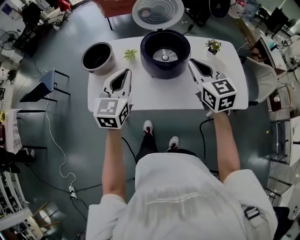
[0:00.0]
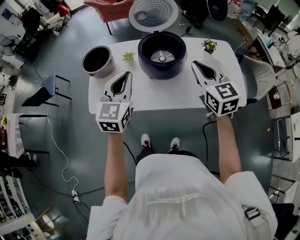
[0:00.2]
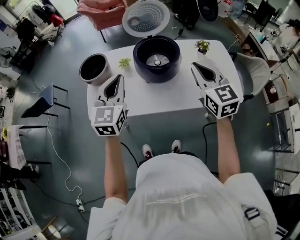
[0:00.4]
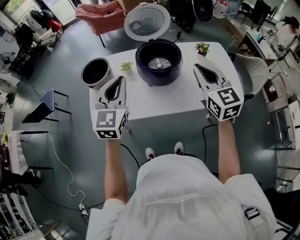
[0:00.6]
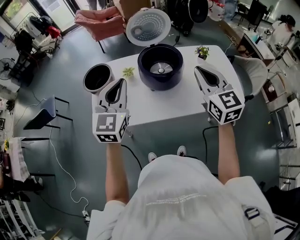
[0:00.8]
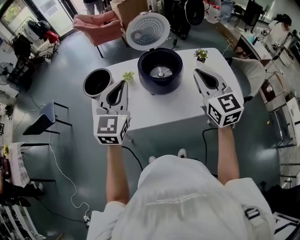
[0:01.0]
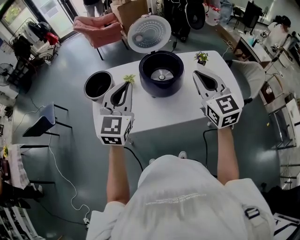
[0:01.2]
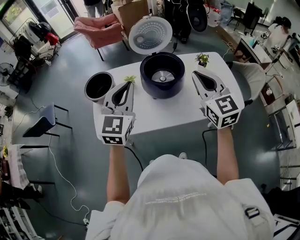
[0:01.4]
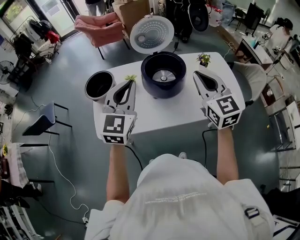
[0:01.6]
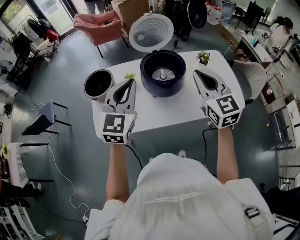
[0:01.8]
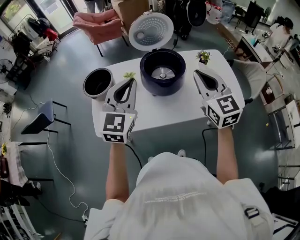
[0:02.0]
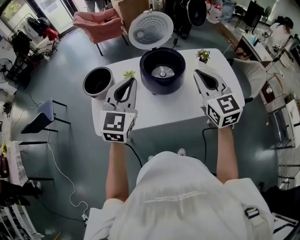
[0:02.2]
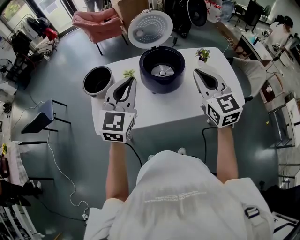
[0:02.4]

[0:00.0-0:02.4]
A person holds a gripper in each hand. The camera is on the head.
0:00.0 to 0:01.2: The right gripper goes about 10 cm upward and backward, while the left gripper goes roughly 10 cm upward.
0:01.2 to 0:02.4: There are only small adjustments of the grippers.

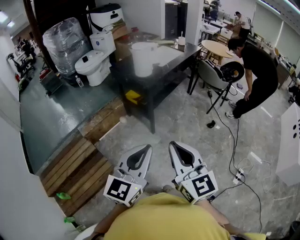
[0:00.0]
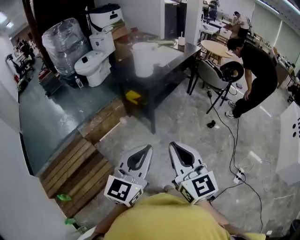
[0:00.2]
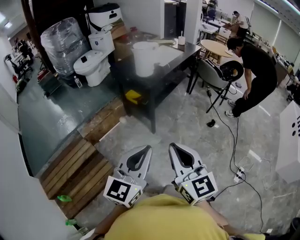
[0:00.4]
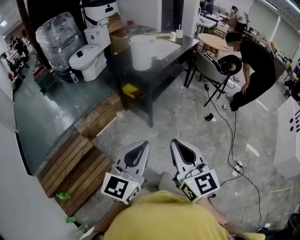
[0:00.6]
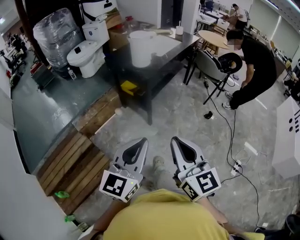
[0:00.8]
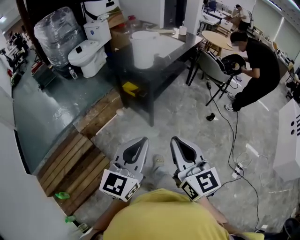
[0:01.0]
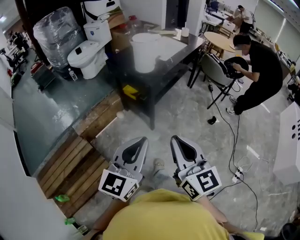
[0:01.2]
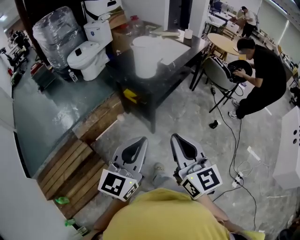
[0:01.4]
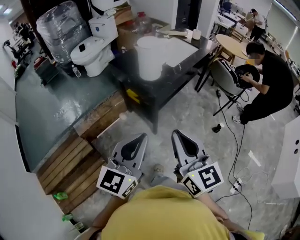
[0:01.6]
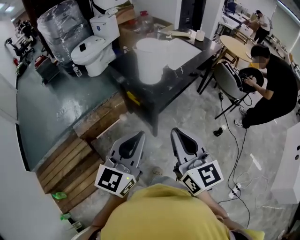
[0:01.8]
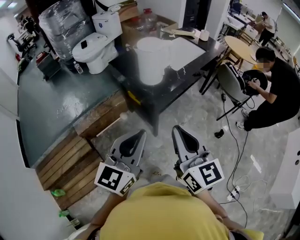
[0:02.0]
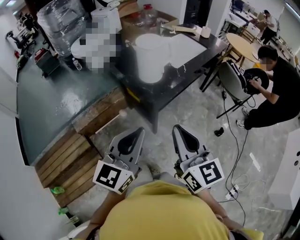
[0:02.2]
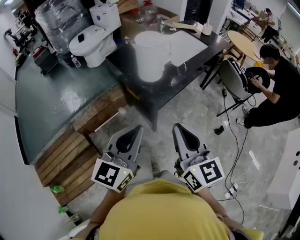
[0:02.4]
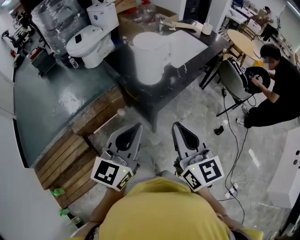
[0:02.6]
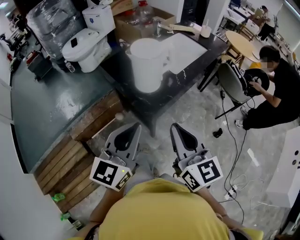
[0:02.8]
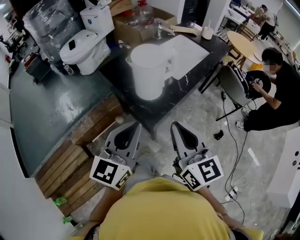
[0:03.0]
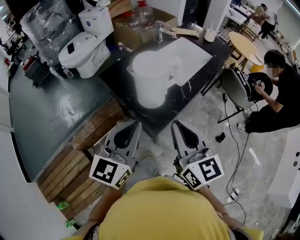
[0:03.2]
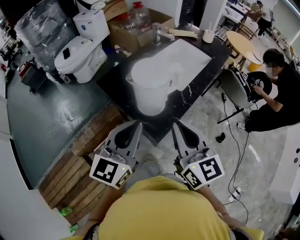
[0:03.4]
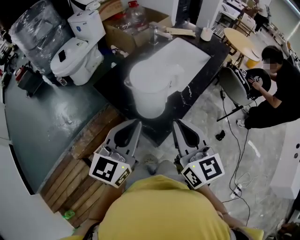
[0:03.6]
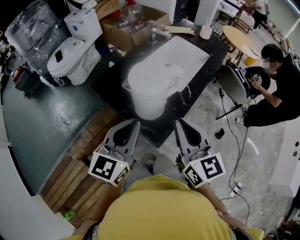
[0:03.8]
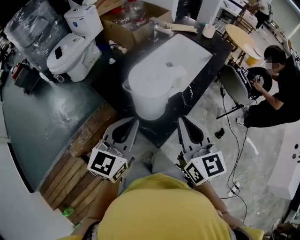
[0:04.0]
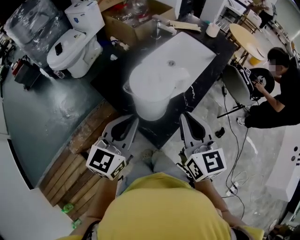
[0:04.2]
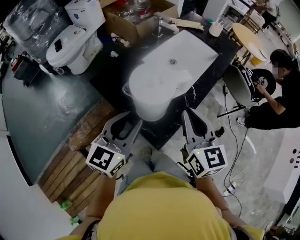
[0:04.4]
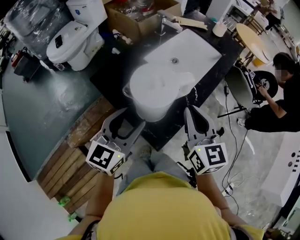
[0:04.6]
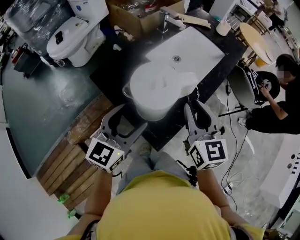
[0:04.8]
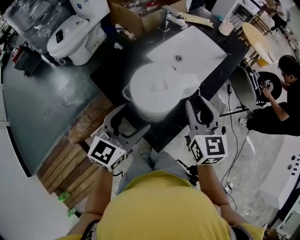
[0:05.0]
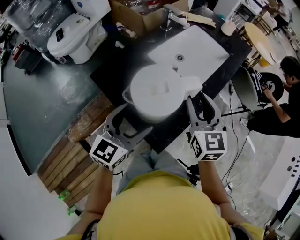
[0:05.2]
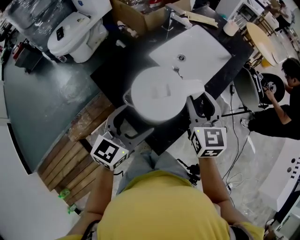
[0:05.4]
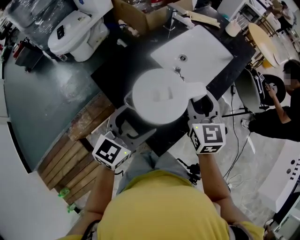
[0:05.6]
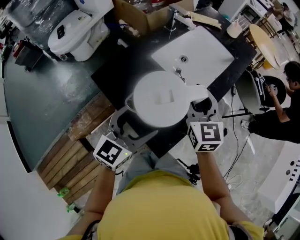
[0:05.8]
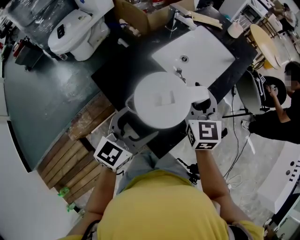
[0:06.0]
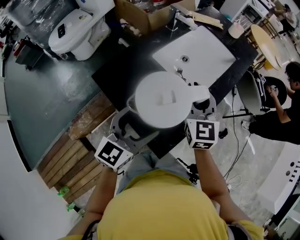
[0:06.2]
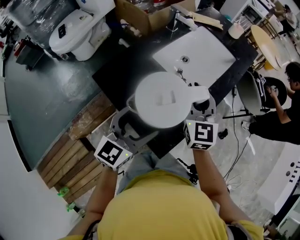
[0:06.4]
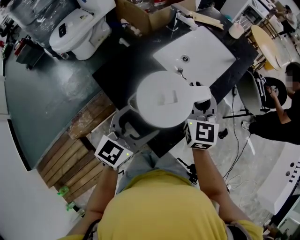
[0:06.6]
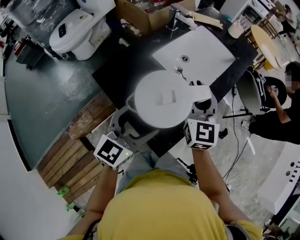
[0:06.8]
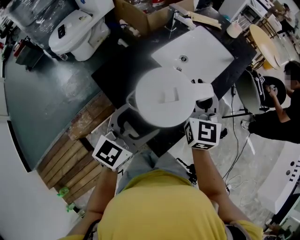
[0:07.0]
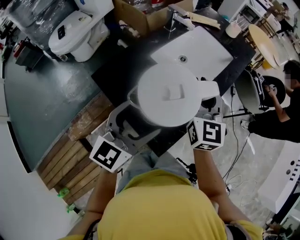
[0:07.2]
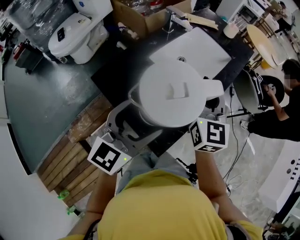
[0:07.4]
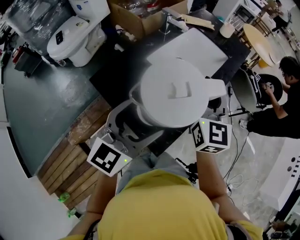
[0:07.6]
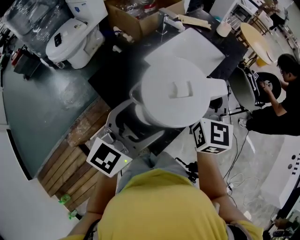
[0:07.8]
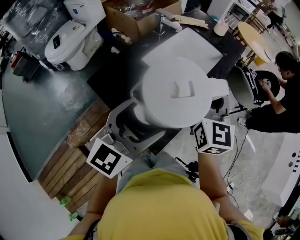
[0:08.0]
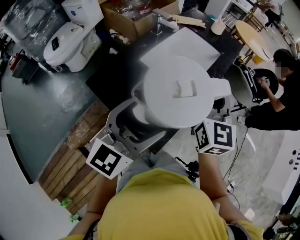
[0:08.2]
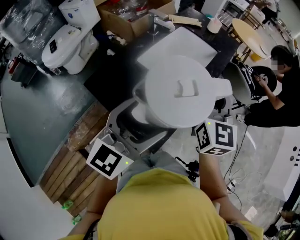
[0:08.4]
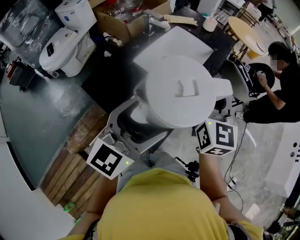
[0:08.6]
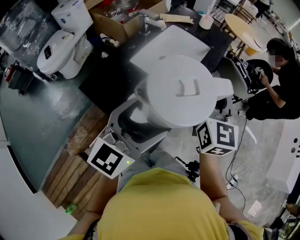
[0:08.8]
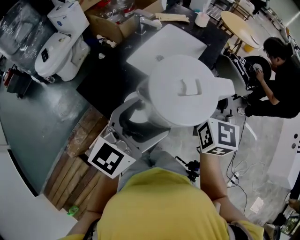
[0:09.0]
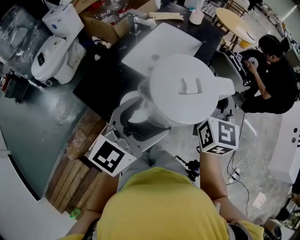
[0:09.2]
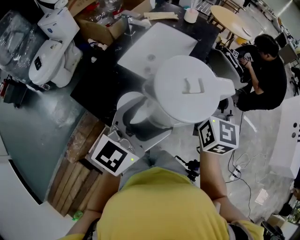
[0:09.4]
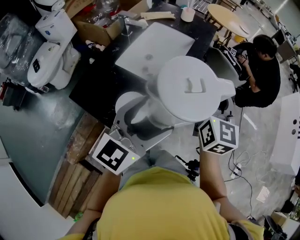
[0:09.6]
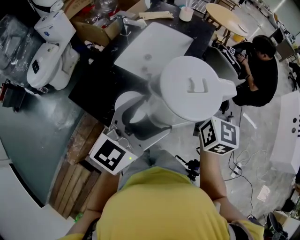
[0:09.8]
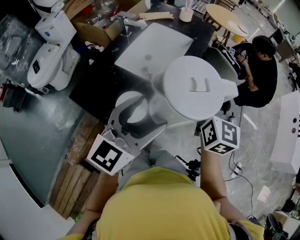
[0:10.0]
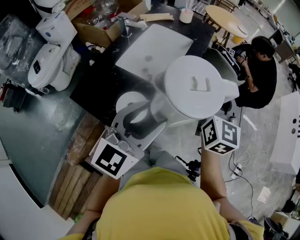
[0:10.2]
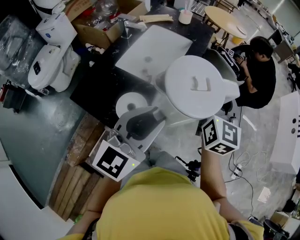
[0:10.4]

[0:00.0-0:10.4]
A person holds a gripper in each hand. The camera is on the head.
0:00.0 to 0:01.4: The grippers both shift forward by some 15 cm.
0:01.4 to 0:03.0: Both grippers travel together forward, approximately 30 cm.
0:03.0 to 0:04.4: Both grippers travel together forward, roughly 20 cm.
0:04.4 to 0:06.0: The left gripper moves forward, approximately 5 cm, and opens up; the right gripper goes roughly 15 cm forward, and opens its fingers.
0:06.0 to 0:07.4: The grippers both shift upward by approximately 5 cm.
0:07.4 to 0:09.0: Both grippers travel together to the right, roughly 10 cm.
0:09.0 to 0:10.4: The left gripper closes up. Meanwhile the right gripper is displaced to the right by some 10 cm.

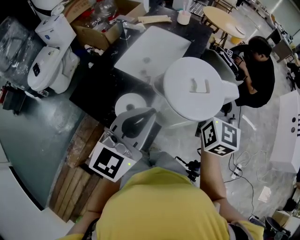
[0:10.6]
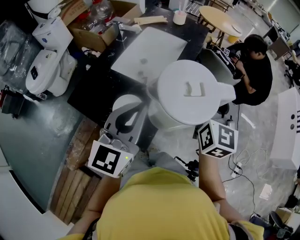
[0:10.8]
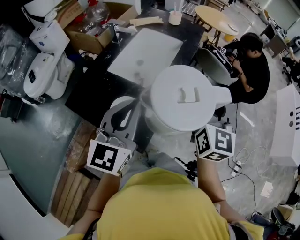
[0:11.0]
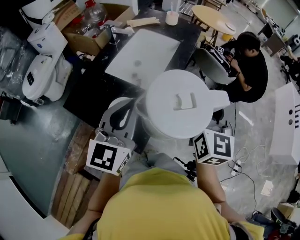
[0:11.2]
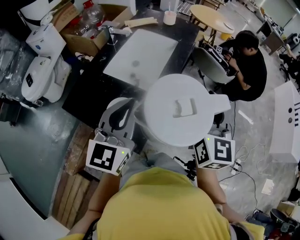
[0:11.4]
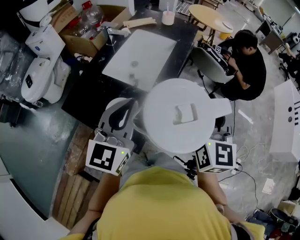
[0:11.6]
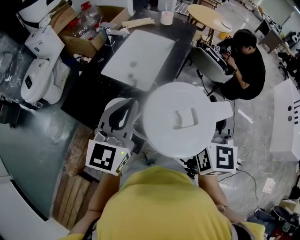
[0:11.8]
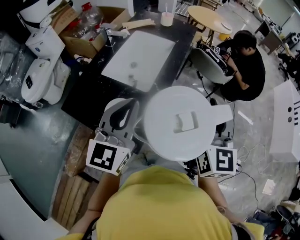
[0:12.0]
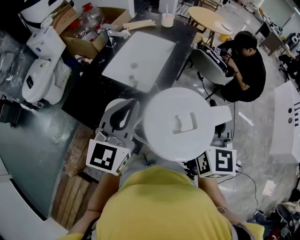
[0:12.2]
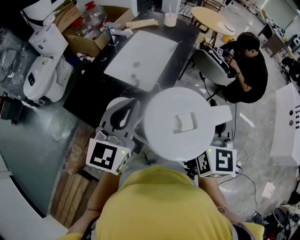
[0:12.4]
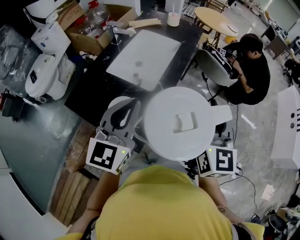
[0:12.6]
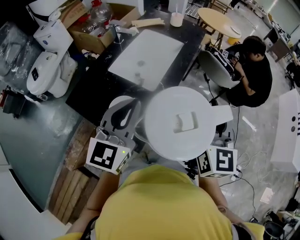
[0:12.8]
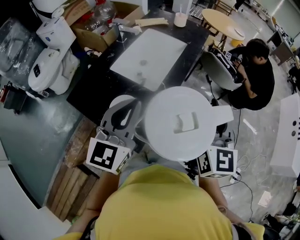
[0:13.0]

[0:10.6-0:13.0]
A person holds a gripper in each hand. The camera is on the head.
0:10.6 to 0:11.8: The right gripper heads backward, covering approximately 5 cm.
0:11.8 to 0:13.0: There are only small adjustments of the grippers.

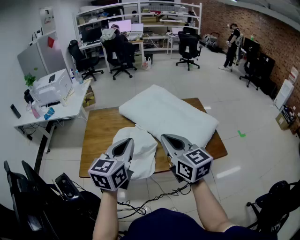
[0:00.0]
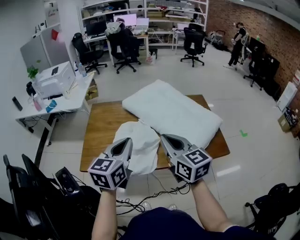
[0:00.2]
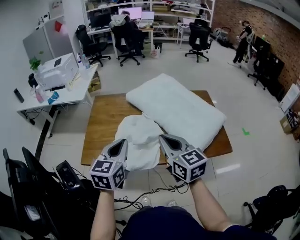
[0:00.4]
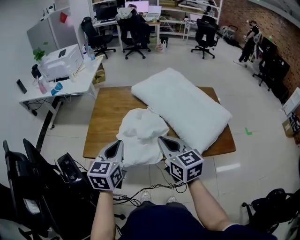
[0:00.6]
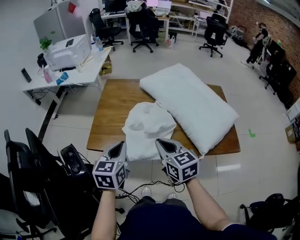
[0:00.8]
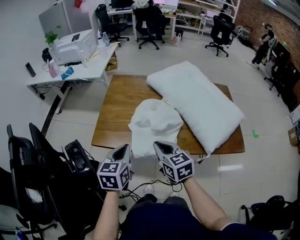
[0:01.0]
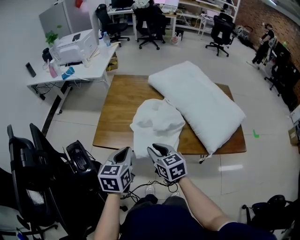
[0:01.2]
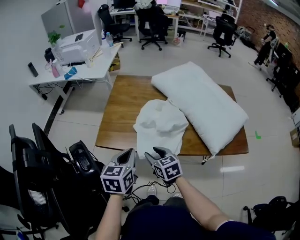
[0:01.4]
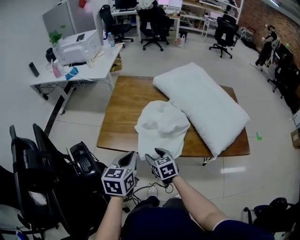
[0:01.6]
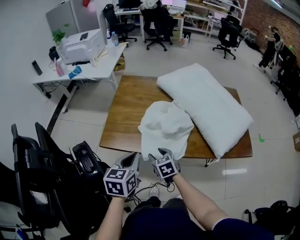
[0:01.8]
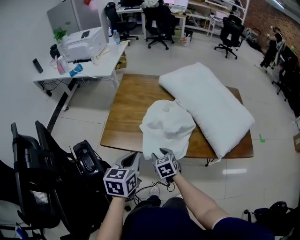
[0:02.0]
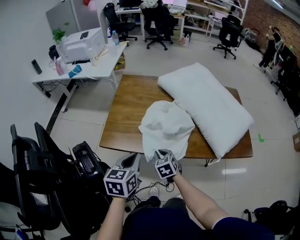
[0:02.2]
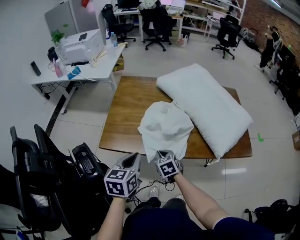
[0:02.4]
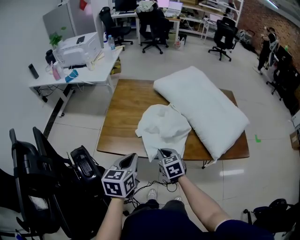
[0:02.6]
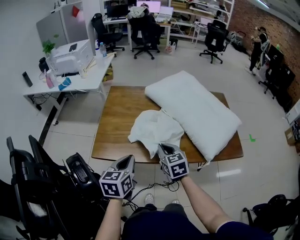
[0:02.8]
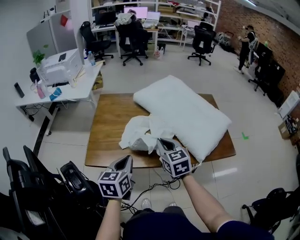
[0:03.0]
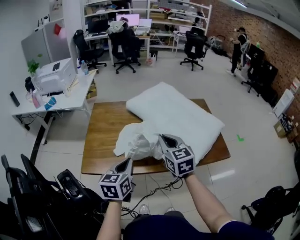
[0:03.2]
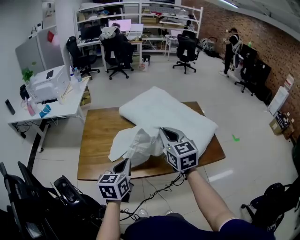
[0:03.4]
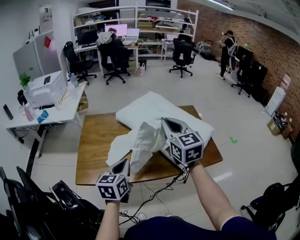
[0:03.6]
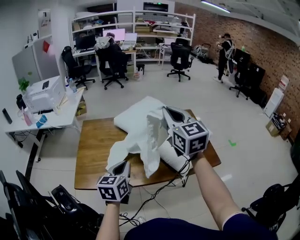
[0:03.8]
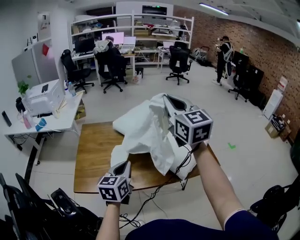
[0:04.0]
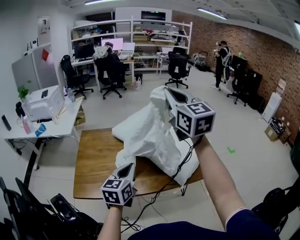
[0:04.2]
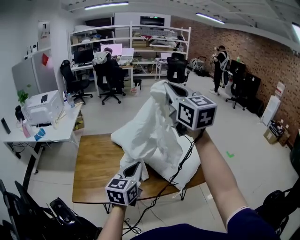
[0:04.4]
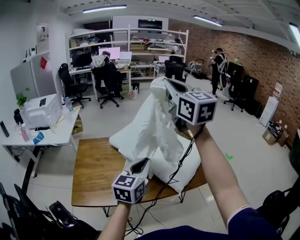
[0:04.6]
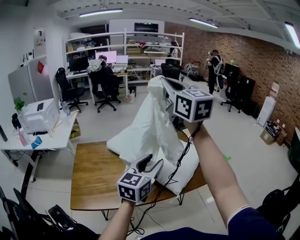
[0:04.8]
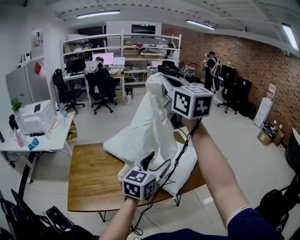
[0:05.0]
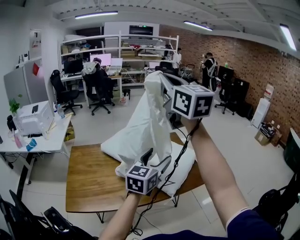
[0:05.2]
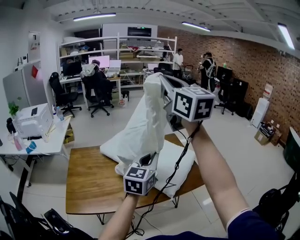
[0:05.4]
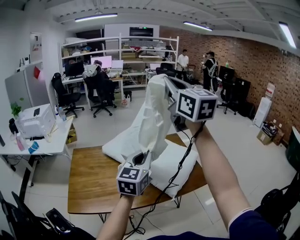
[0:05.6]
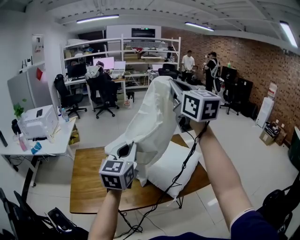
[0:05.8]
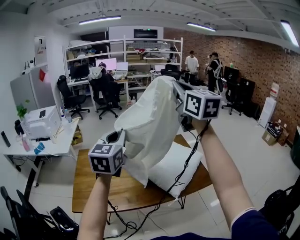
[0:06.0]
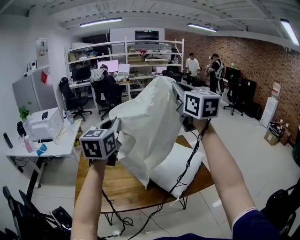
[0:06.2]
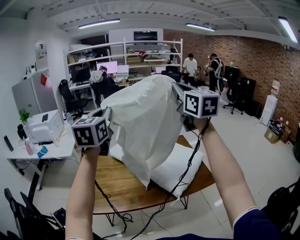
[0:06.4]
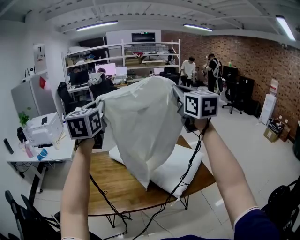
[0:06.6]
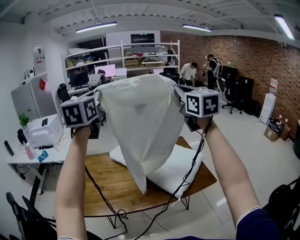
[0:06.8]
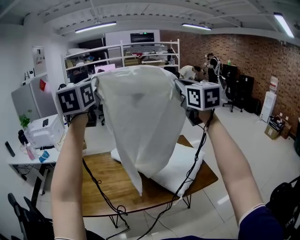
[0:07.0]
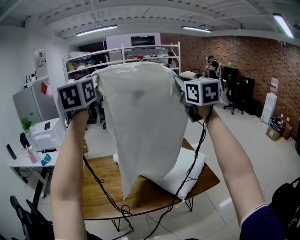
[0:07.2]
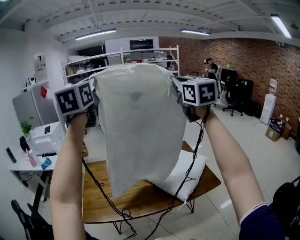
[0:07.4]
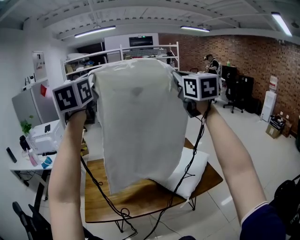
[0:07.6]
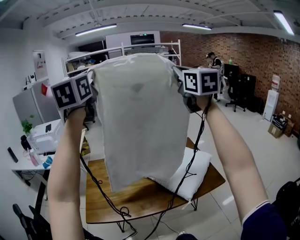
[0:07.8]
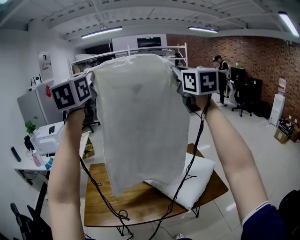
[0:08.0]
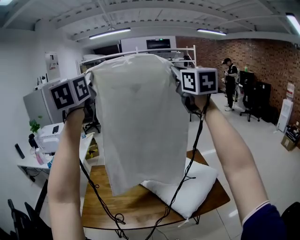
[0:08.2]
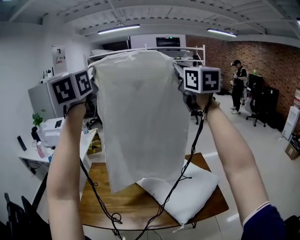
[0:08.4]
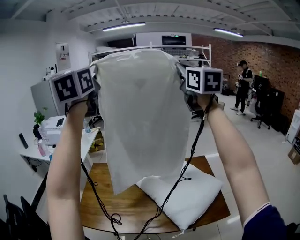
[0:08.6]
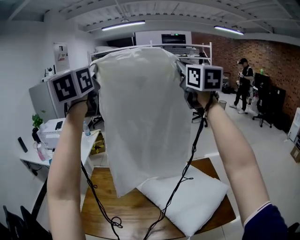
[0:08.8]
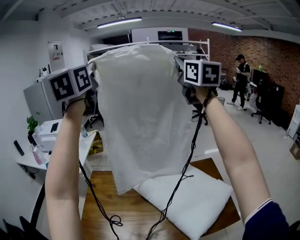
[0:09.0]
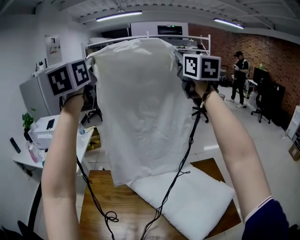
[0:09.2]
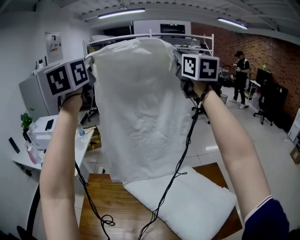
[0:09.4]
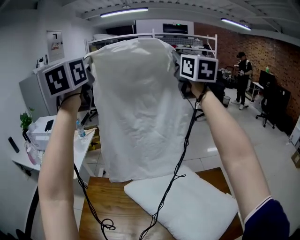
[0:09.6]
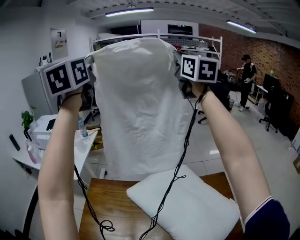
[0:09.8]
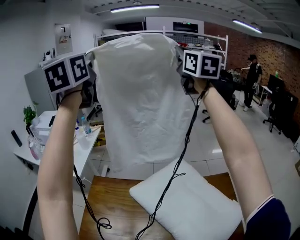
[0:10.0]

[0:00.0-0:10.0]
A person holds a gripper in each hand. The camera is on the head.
0:00.0 to 0:01.4: Both grippers travel together downward and to the left, approximately 25 cm. The left gripper changes its angle by roughly 30 degrees; the right gripper turns by some 30 degrees, and opens.
0:01.4 to 0:02.8: The right gripper heads to the right and forward, covering approximately 10 cm, and closes.
0:02.8 to 0:04.2: The left gripper heads to the right, upward and forward, covering roughly 20 cm, and swivels approximately 20 degrees. The right gripper is displaced upward by roughly 40 cm, and tilts its fingers approximately 40 degrees upward.
0:04.2 to 0:05.8: The right gripper heads upward and to the right, covering roughly 15 cm. The left gripper is displaced upward by about 20 cm, turns by approximately 20 degrees, and opens, then closes once more.
0:05.8 to 0:07.2: The right gripper ends up some 5 cm from where it was. Meanwhile the left gripper is displaced upward and to the left by some 35 cm, and turns by approximately 20 degrees.
0:07.2 to 0:08.6: The right gripper moves forward, roughly 20 cm. The left gripper goes roughly 10 cm forward.
0:08.6 to 0:10.0: The two grippers go roughly 30 cm forward.
